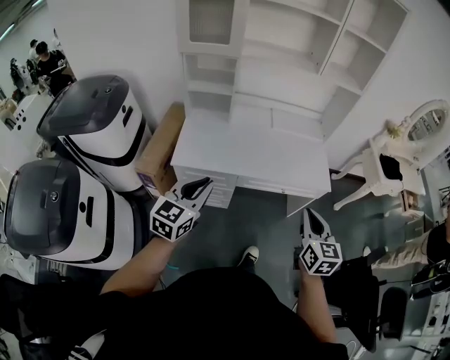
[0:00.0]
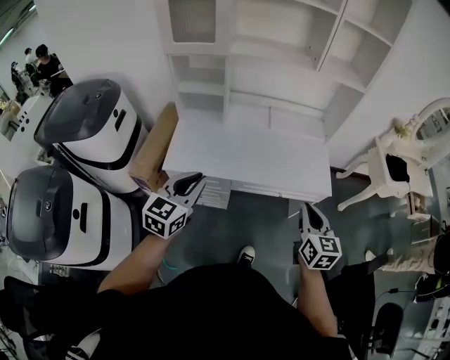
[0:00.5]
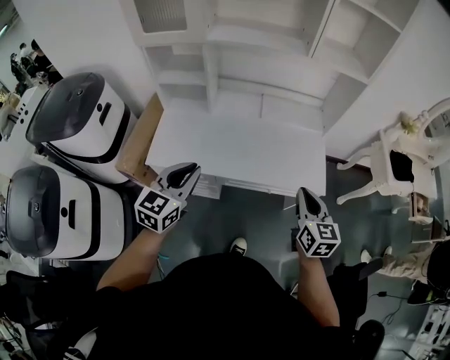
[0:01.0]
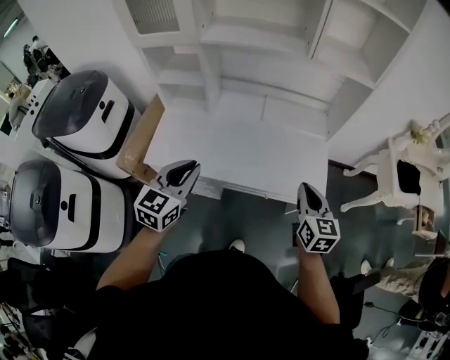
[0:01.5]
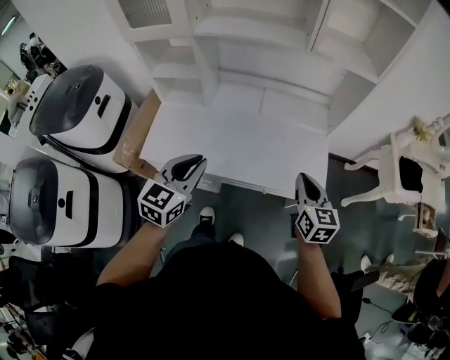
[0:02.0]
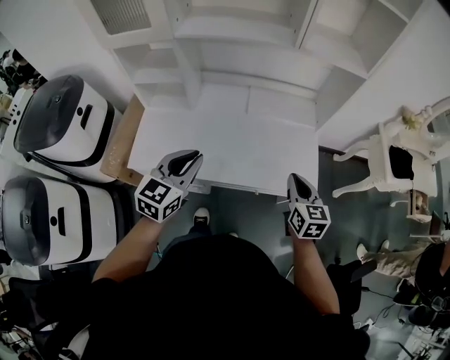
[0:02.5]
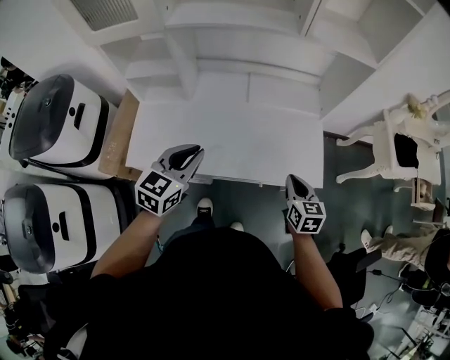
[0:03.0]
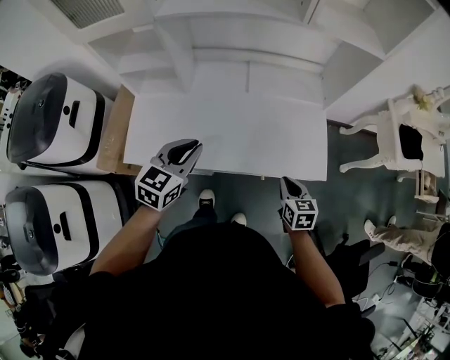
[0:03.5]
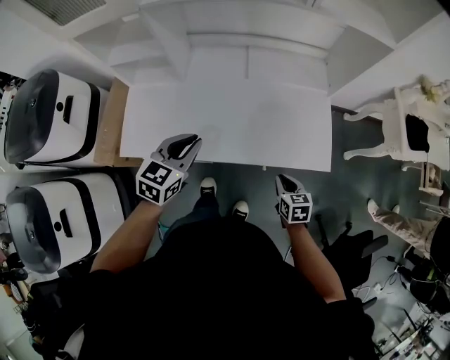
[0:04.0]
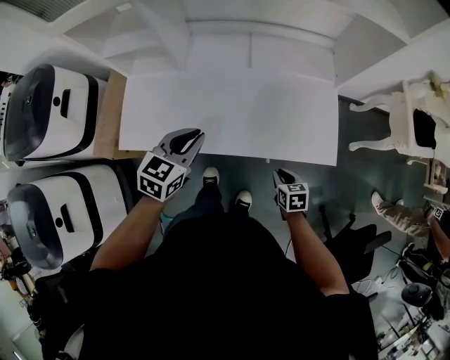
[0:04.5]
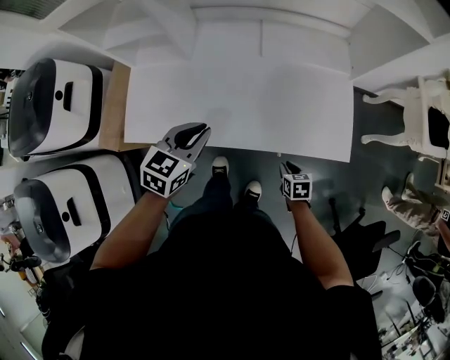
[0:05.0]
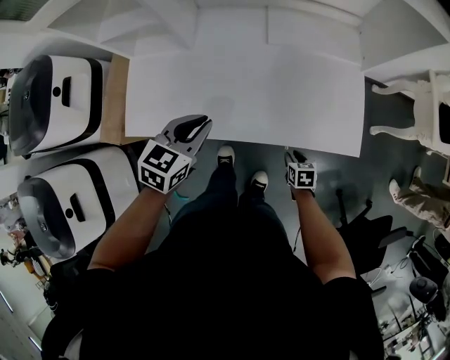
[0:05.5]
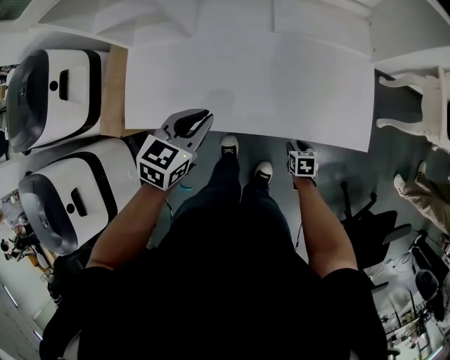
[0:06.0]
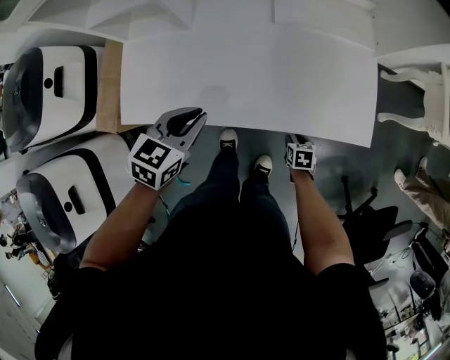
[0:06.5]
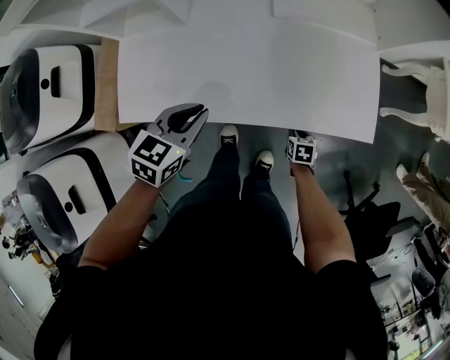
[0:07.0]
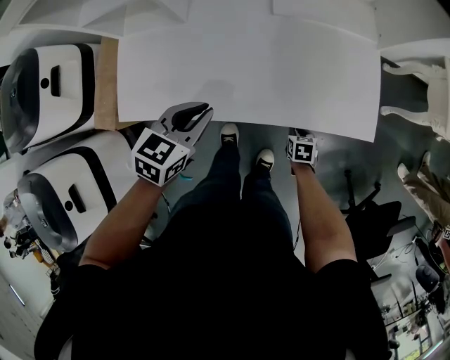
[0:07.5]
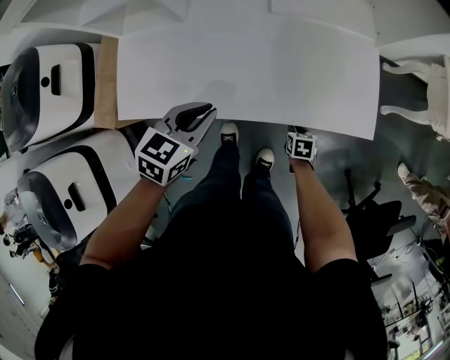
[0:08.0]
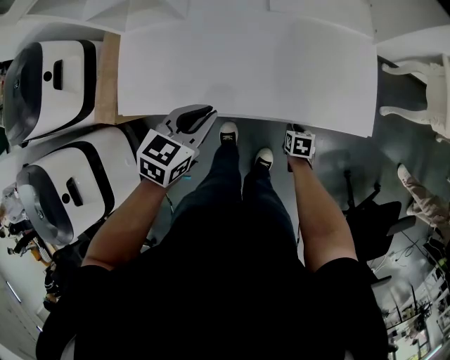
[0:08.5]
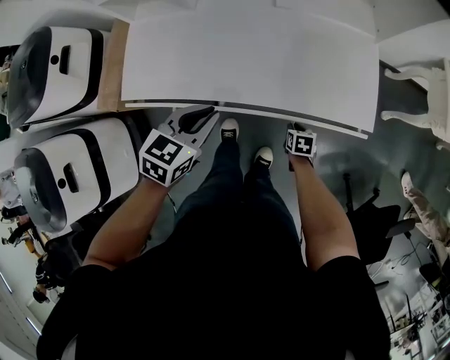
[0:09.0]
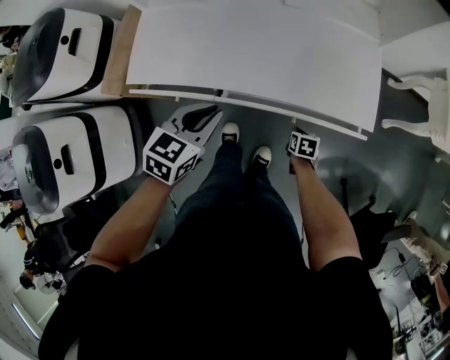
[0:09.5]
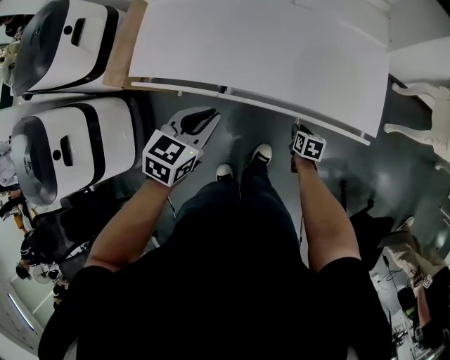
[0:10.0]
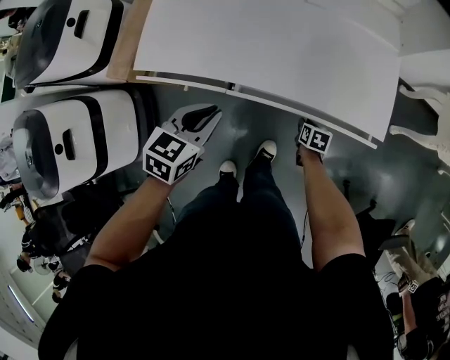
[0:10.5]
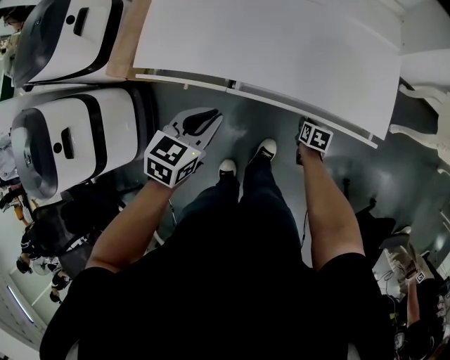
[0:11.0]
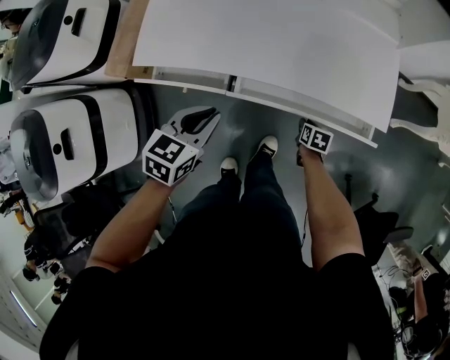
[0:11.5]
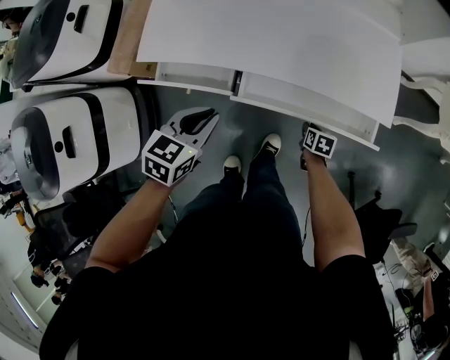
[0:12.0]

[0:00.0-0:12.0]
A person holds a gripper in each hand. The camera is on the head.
0:00.0 to 0:02.0: Both grippers travel together forward and to the right, approximately 30 cm.
0:02.0 to 0:04.0: The right gripper heads downward, covering approximately 25 cm, and rotates approximately 30 degrees. The left gripper travels downward and forward by roughly 15 cm.
0:04.0 to 0:06.0: The left gripper goes approximately 10 cm downward, while the right gripper moves downward, some 20 cm, and opens up.
0:06.0 to 0:08.0: There are only small adjustments of the grippers.
0:08.0 to 0:10.0: The left gripper shifts roughly 15 cm backward. The right gripper moves backward, approximately 5 cm.
0:10.0 to 0:12.0: The left gripper heads to the left and backward, covering roughly 5 cm.

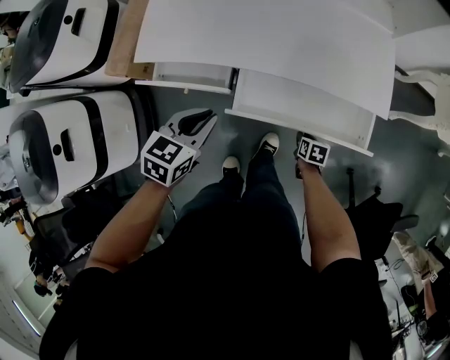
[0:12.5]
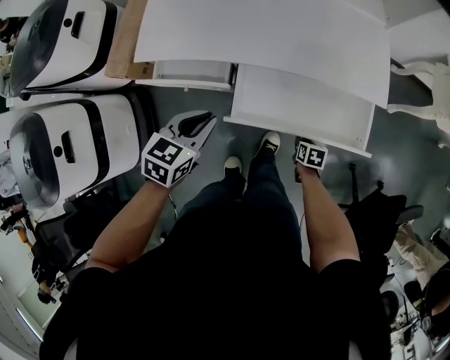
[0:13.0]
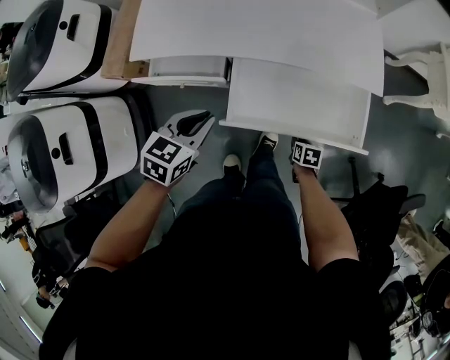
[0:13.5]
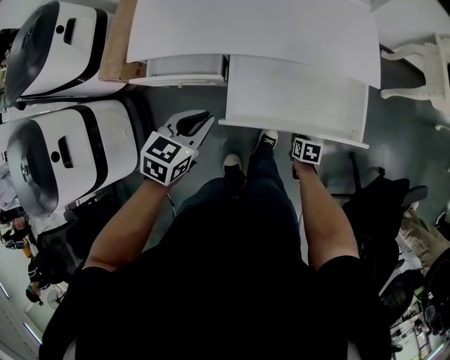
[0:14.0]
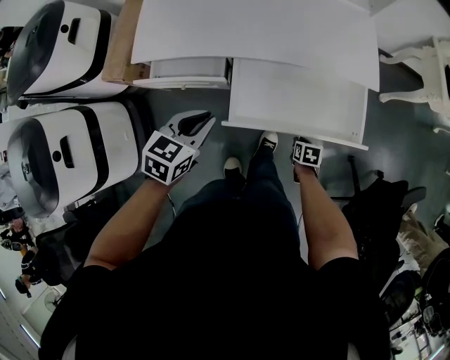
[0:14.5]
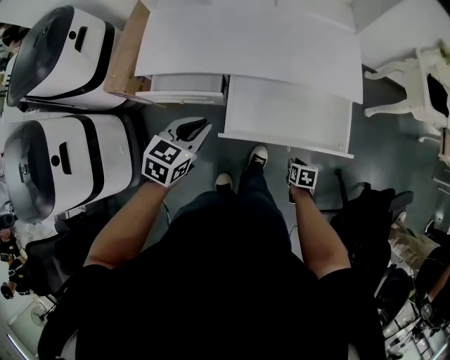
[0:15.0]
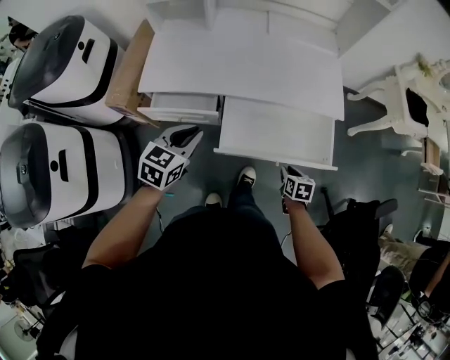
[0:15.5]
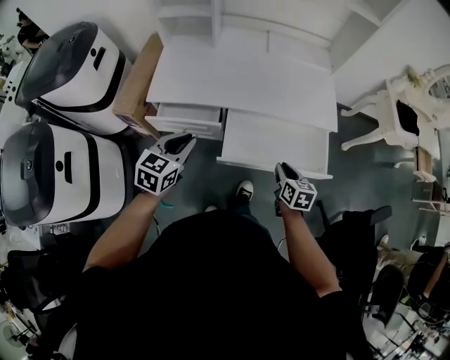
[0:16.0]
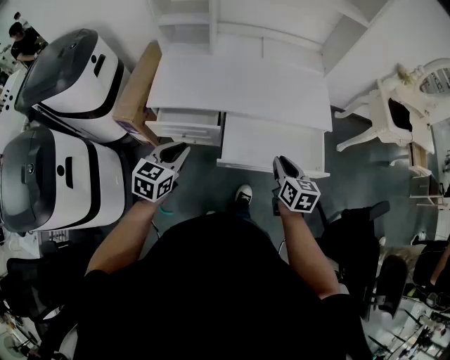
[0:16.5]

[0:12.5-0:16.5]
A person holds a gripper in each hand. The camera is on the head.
0:12.5 to 0:14.5: The left gripper travels backward by about 5 cm. Meanwhile the right gripper heads backward, covering approximately 10 cm.
0:14.5 to 0:16.5: The right gripper is displaced upward by approximately 35 cm, and points its fingers roughly 40 degrees further upward. The left gripper moves upward, to the left and backward, roughly 15 cm.

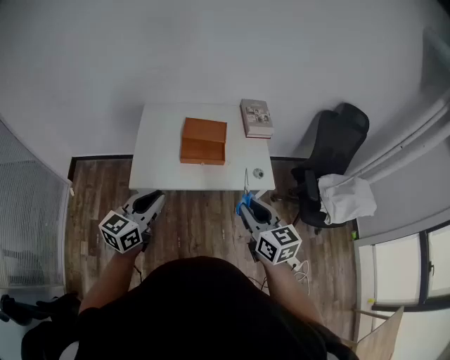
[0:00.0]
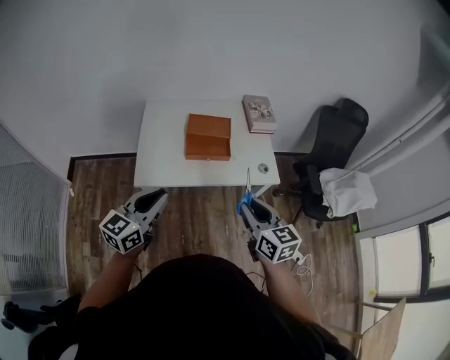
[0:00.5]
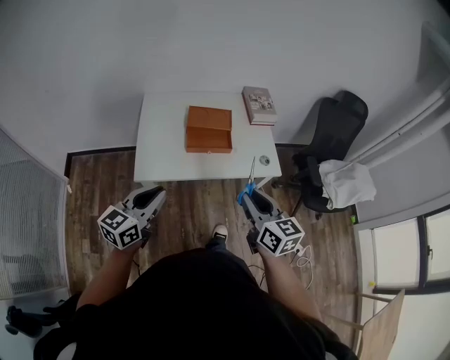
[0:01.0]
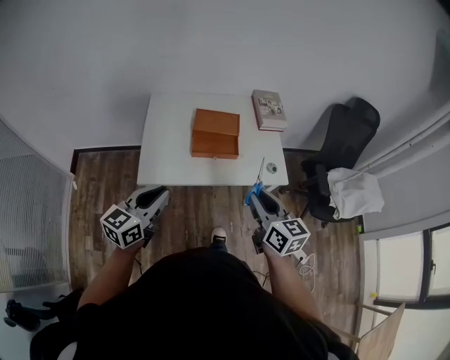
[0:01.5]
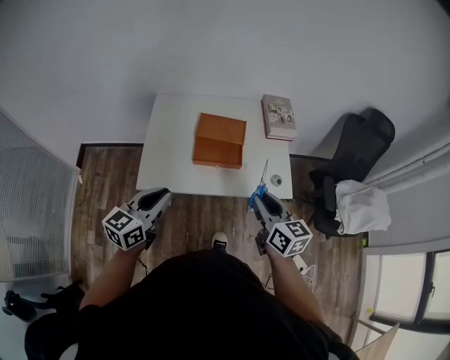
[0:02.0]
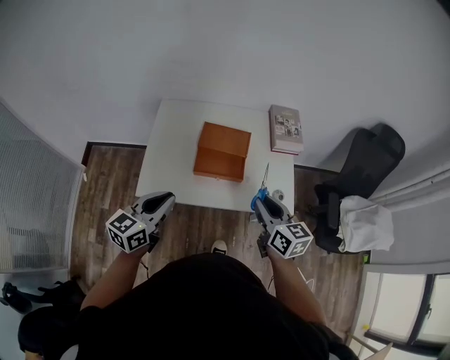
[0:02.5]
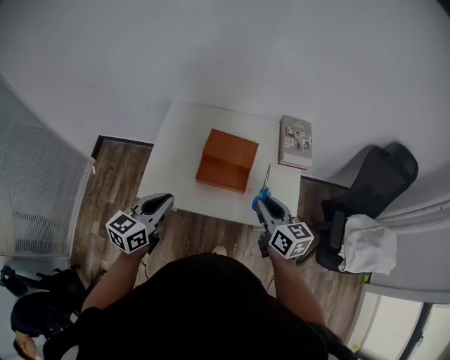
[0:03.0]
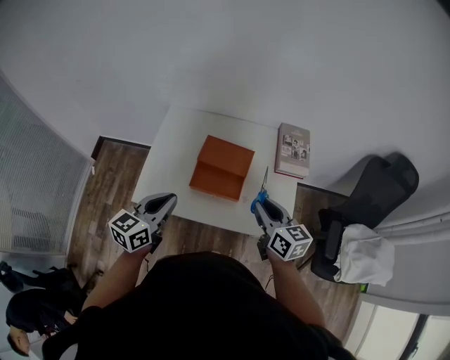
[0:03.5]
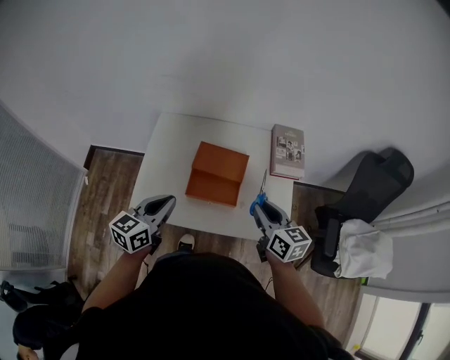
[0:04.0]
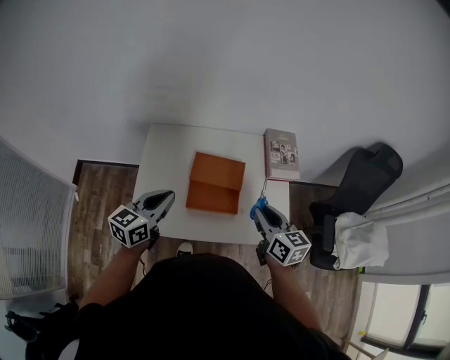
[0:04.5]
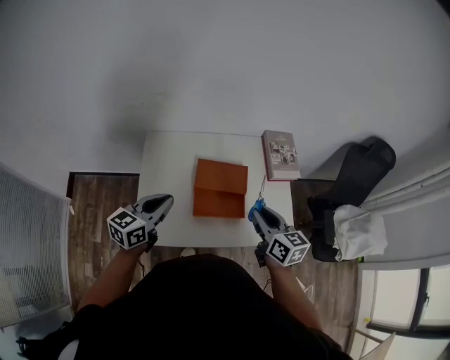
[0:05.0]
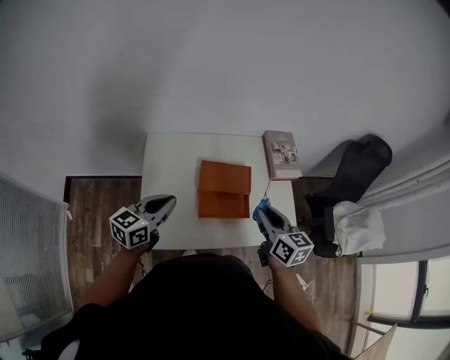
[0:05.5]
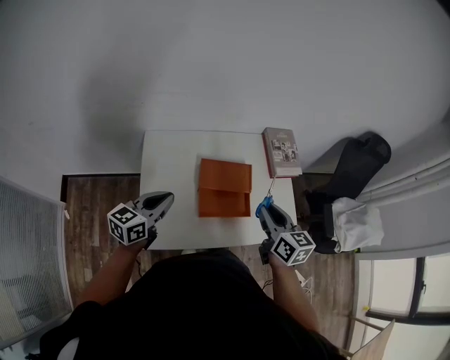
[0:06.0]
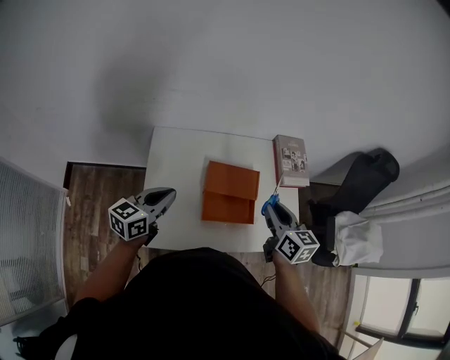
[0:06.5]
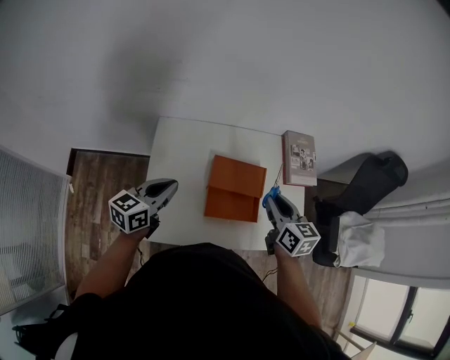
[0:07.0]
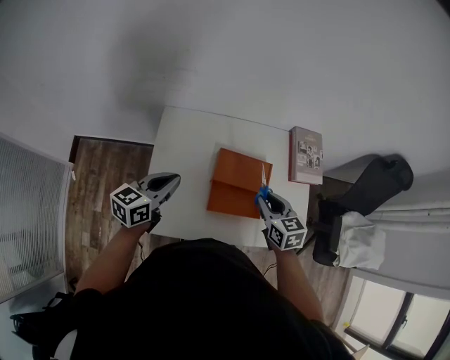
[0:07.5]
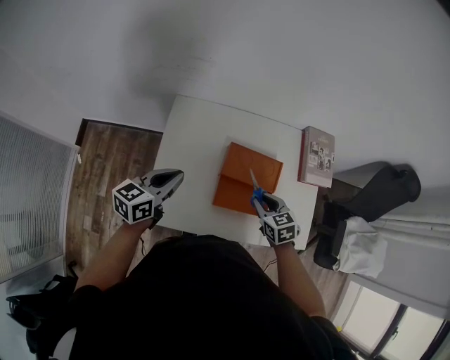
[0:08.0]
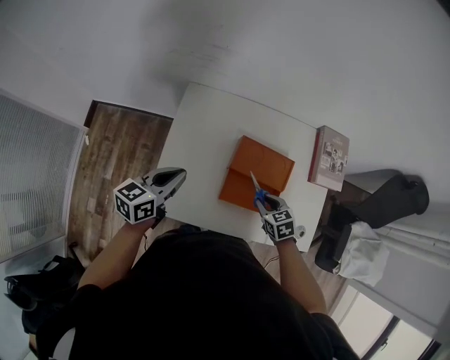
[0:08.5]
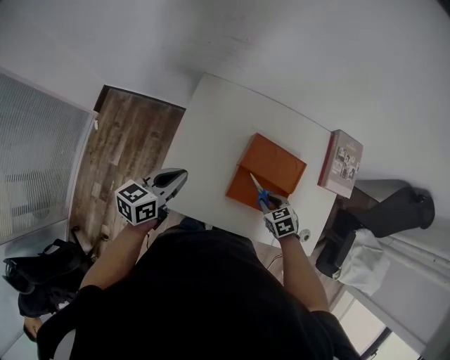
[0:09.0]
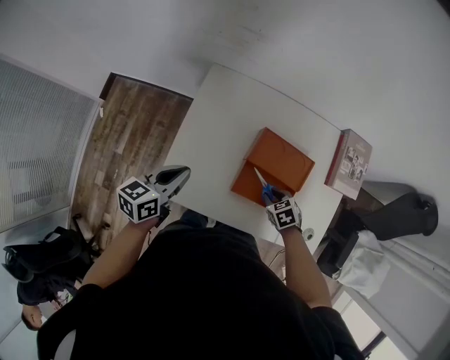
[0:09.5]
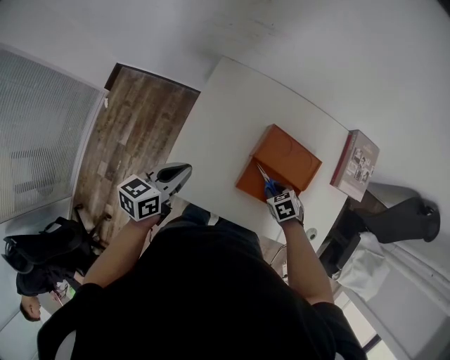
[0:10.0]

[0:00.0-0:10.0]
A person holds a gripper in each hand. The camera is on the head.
0:00.0 to 0:02.0: The left gripper shifts some 5 cm forward. The right gripper is displaced forward by about 10 cm.
0:02.0 to 0:04.0: The left gripper travels forward and to the right by roughly 15 cm, while the right gripper shifts roughly 15 cm forward.
0:04.0 to 0:06.0: The right gripper shifts approximately 10 cm to the left, while the left gripper moves to the left and forward, some 15 cm.
0:06.0 to 0:08.0: The left gripper moves approximately 5 cm. Meanwhile the right gripper moves downward, approximately 20 cm, and rotates some 40 degrees.
0:08.0 to 0:10.0: The right gripper moves downward, about 15 cm, and rotates roughly 30 degrees, while the left gripper changes place by roughly 10 cm.
